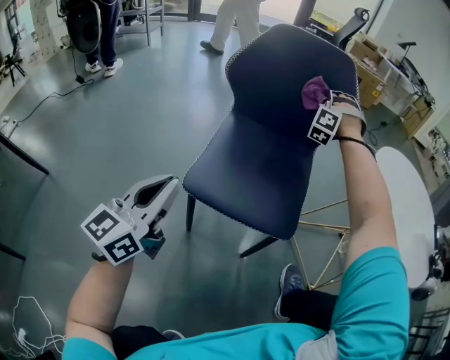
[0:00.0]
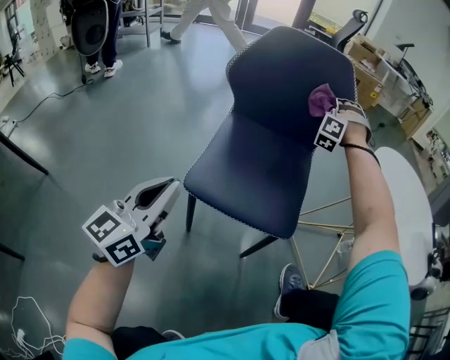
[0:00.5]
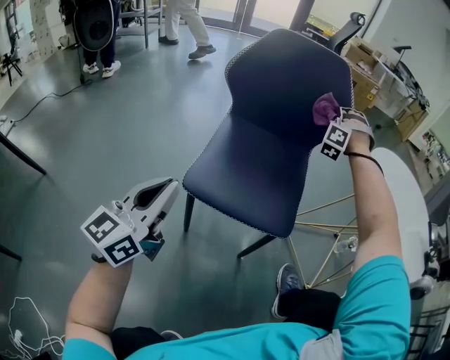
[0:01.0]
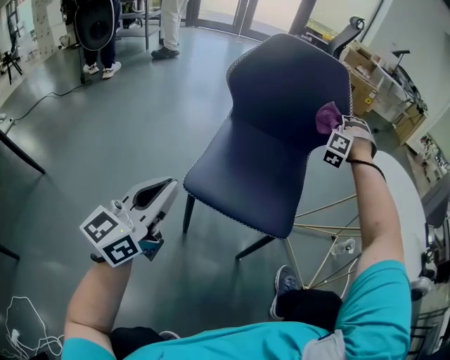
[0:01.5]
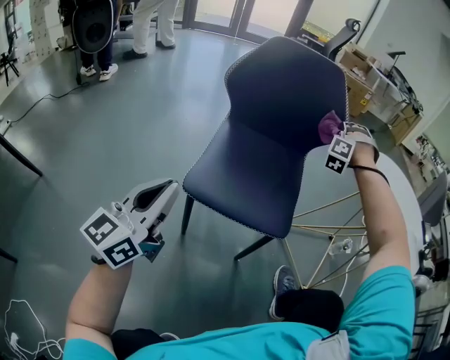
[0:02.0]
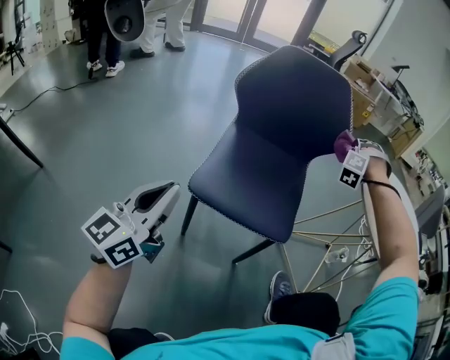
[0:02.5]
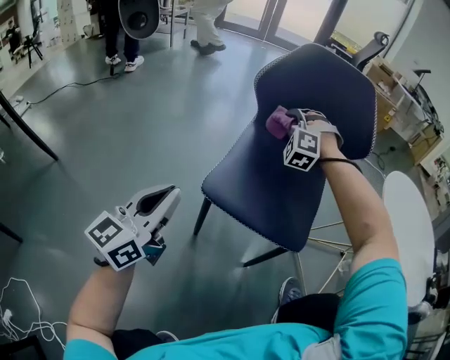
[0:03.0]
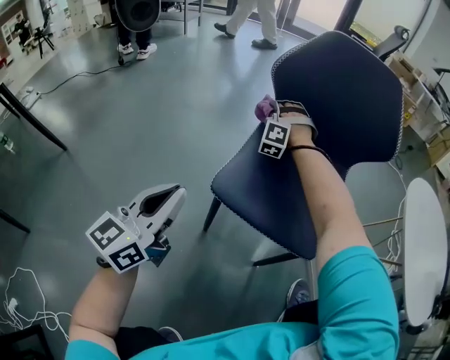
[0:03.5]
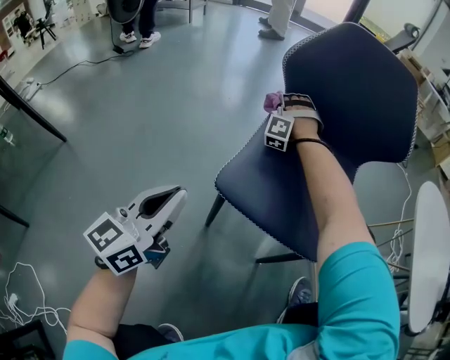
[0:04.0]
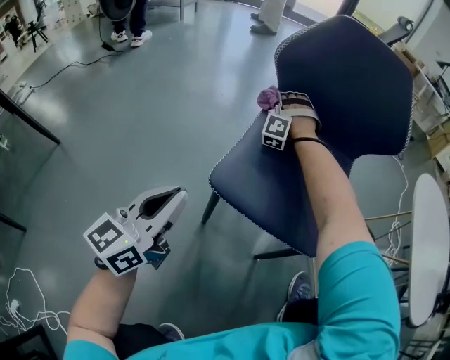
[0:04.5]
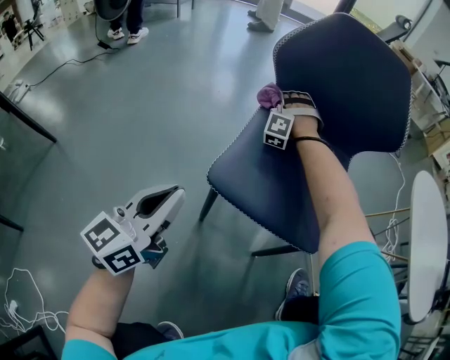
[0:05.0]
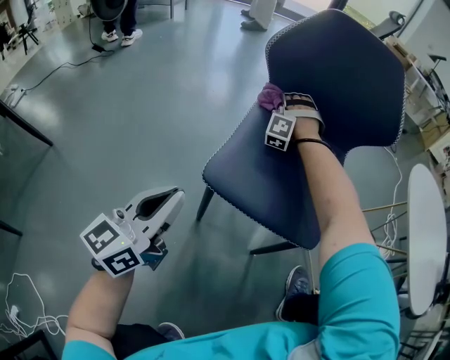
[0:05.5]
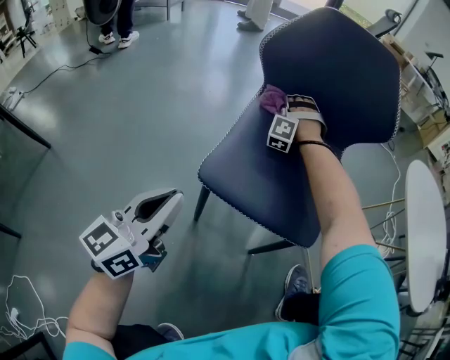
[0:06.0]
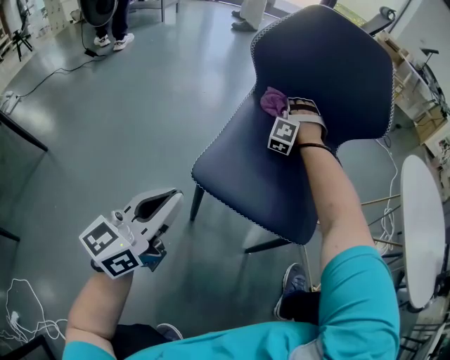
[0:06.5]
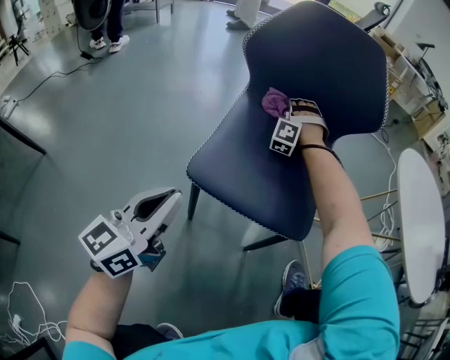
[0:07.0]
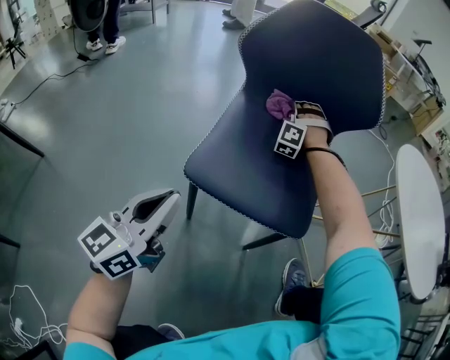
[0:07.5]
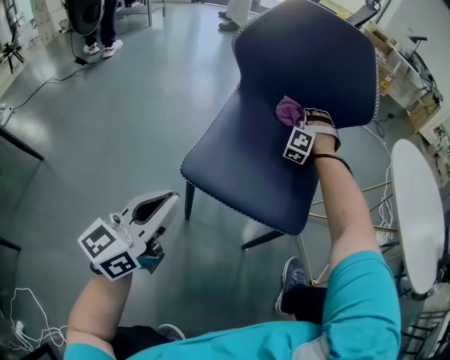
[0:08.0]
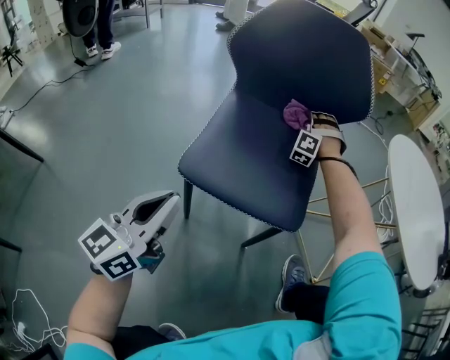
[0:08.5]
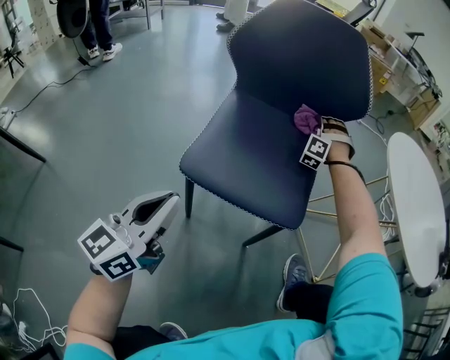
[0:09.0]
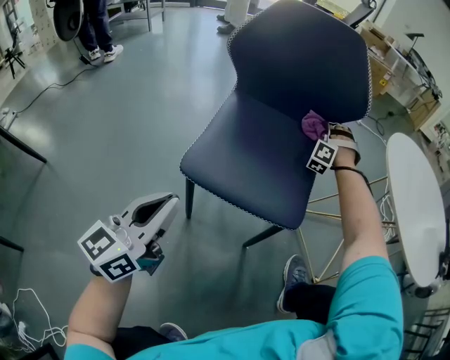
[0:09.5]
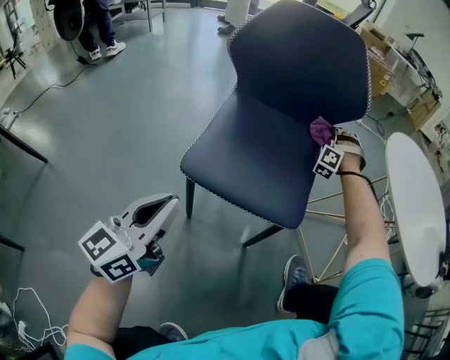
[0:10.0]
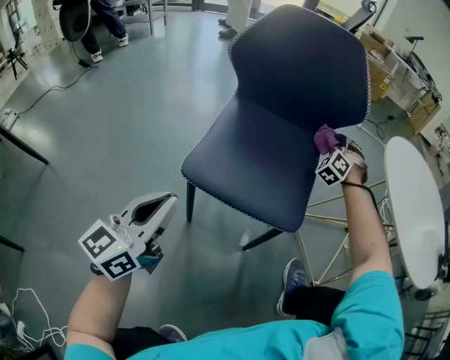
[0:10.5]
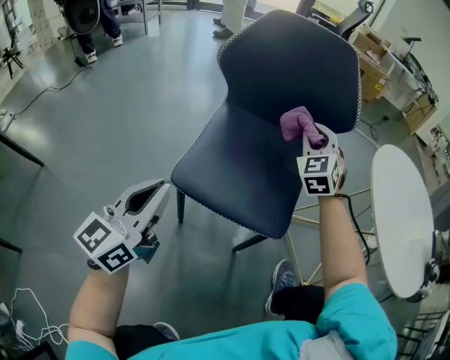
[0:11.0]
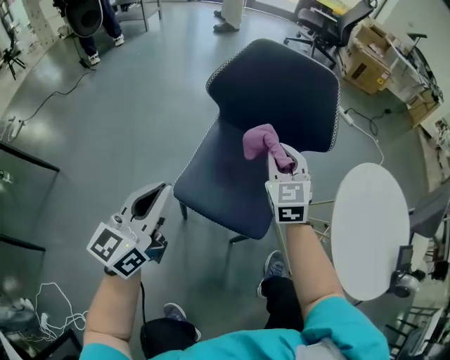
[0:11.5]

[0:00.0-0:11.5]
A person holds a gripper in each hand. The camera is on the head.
0:02.0 to 0:04.0: The left gripper shifts about 10 cm downward.
0:09.5 to 0:11.5: The left gripper goes some 20 cm upward.

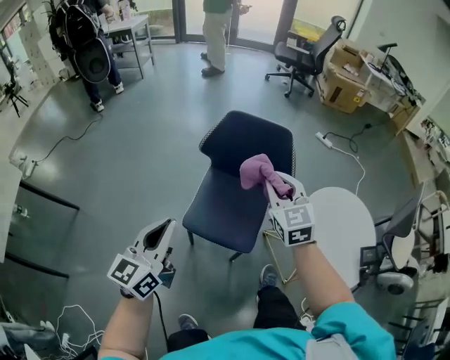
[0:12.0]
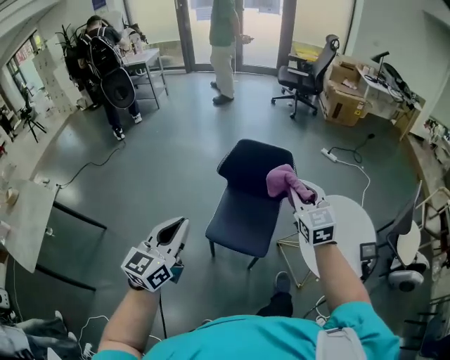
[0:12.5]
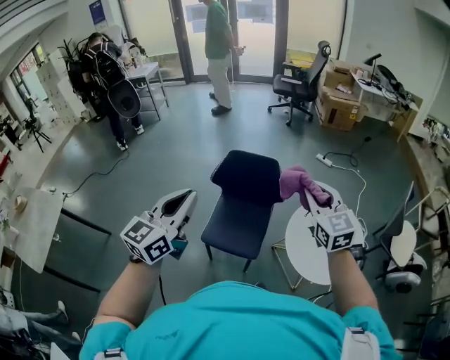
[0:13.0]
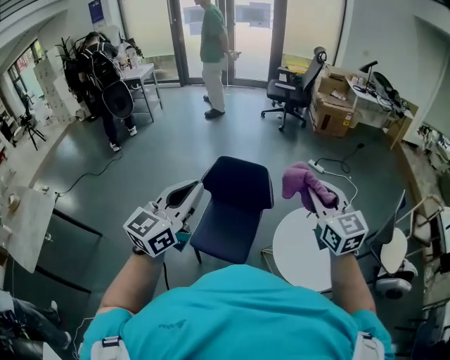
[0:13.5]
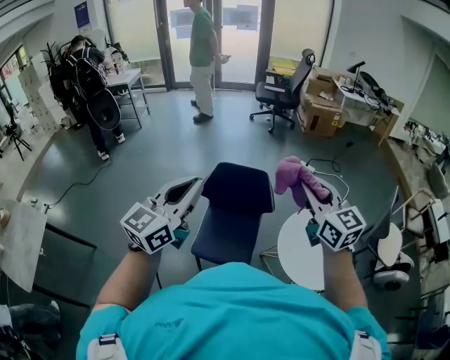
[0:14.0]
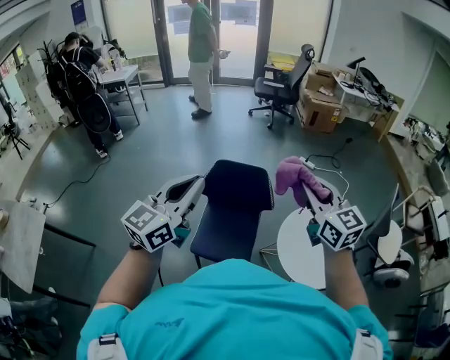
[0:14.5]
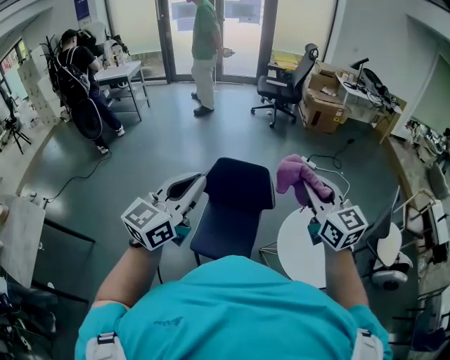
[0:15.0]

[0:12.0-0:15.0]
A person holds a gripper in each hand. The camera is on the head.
0:12.0 to 0:13.5: The left gripper is displaced upward by approximately 35 cm.
0:13.5 to 0:15.0: The left gripper moves approximately 5 cm.

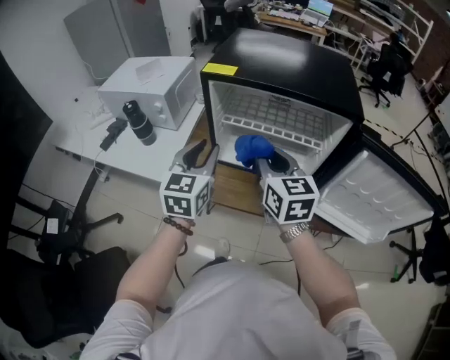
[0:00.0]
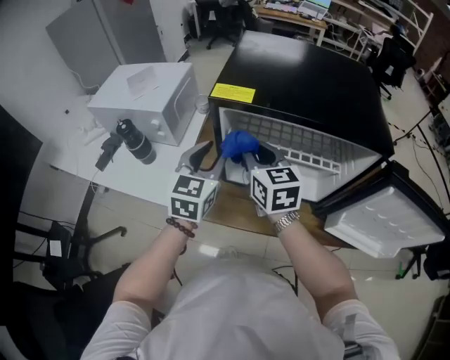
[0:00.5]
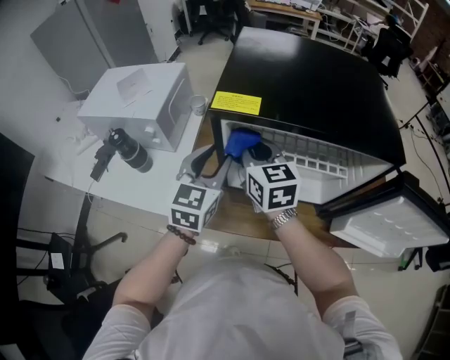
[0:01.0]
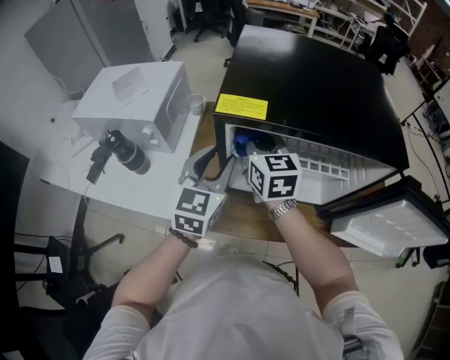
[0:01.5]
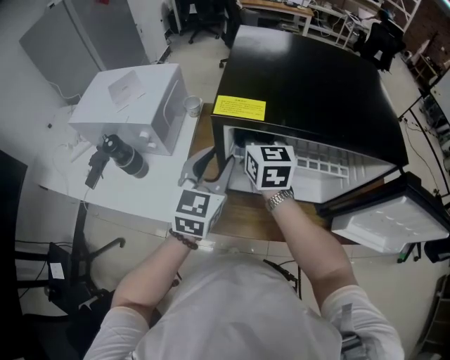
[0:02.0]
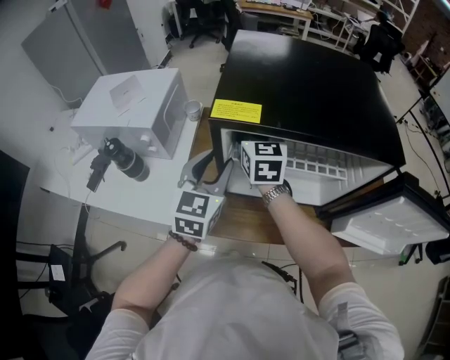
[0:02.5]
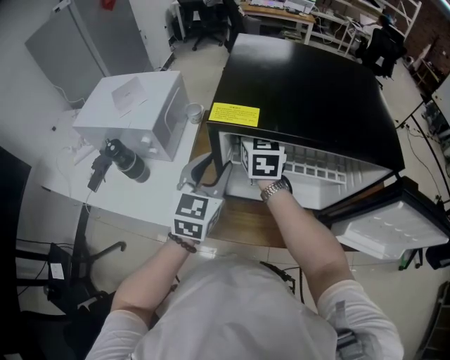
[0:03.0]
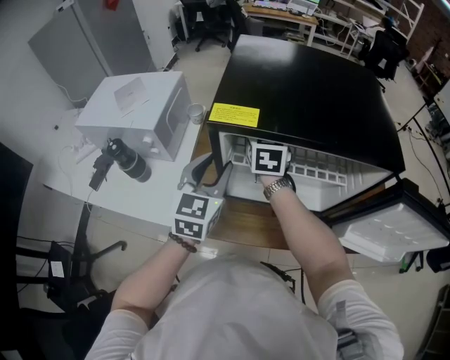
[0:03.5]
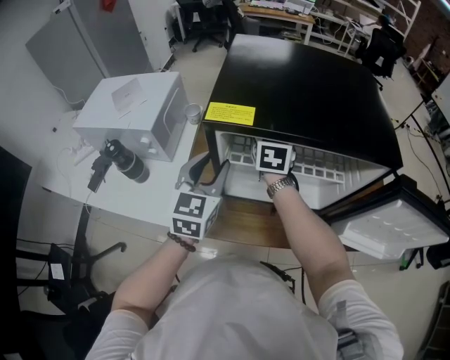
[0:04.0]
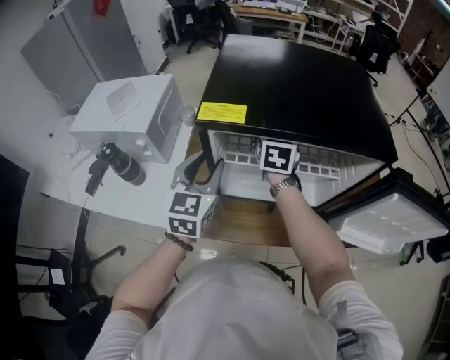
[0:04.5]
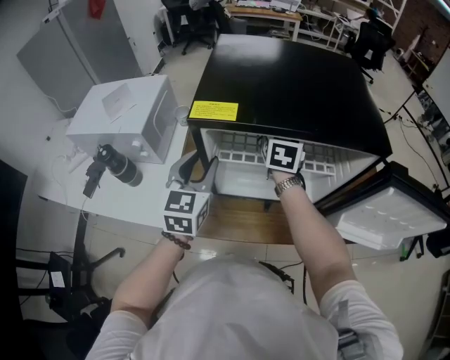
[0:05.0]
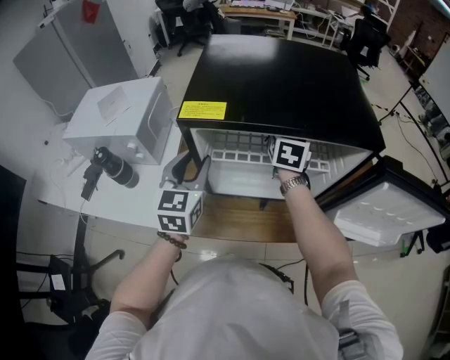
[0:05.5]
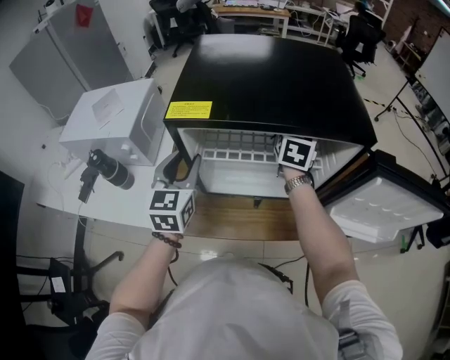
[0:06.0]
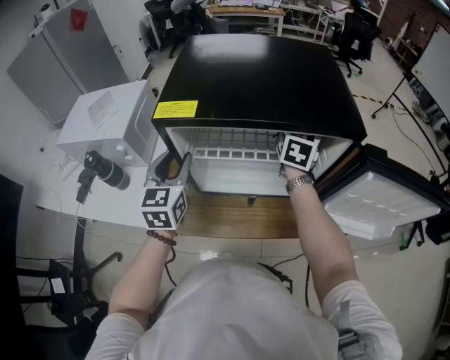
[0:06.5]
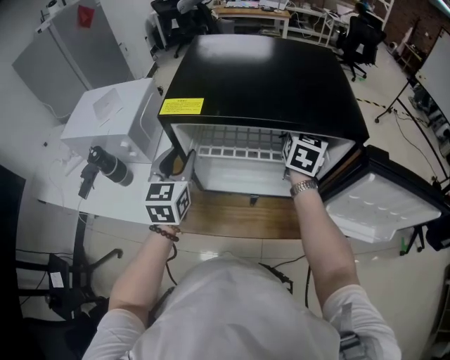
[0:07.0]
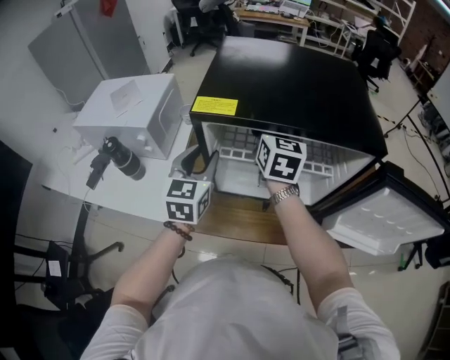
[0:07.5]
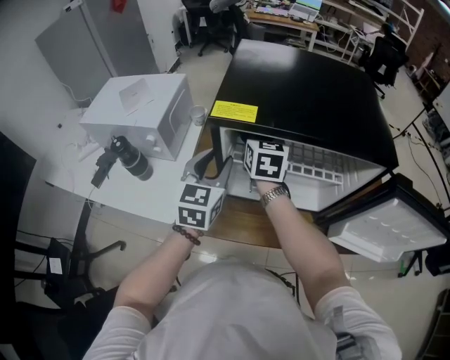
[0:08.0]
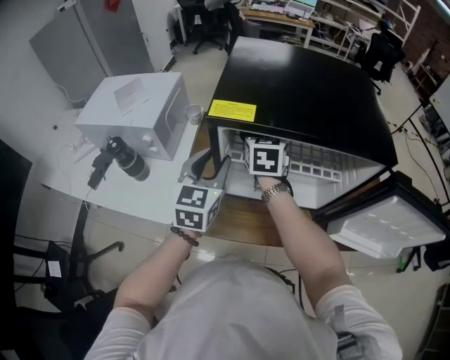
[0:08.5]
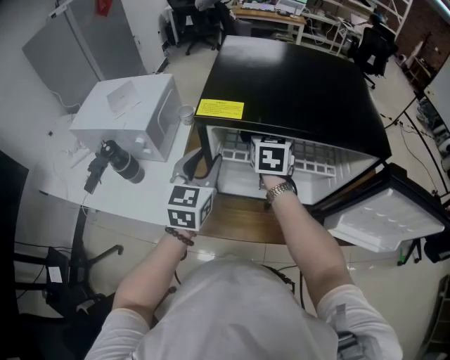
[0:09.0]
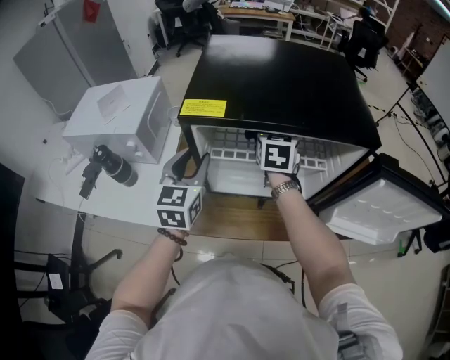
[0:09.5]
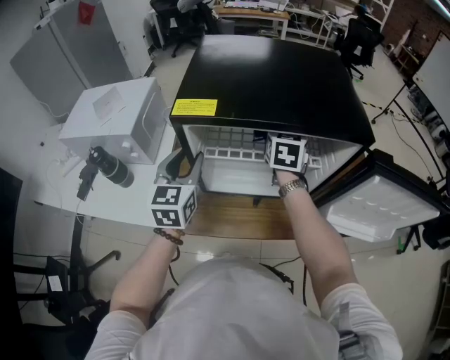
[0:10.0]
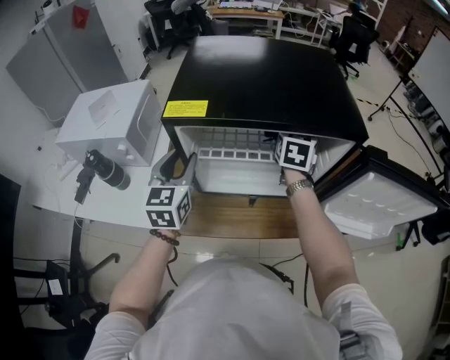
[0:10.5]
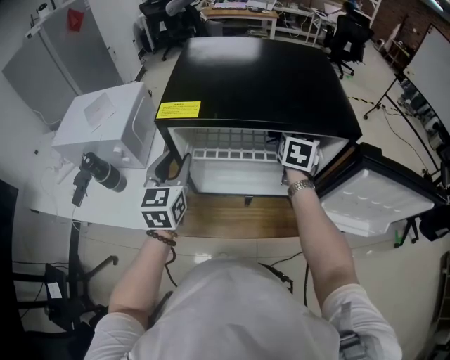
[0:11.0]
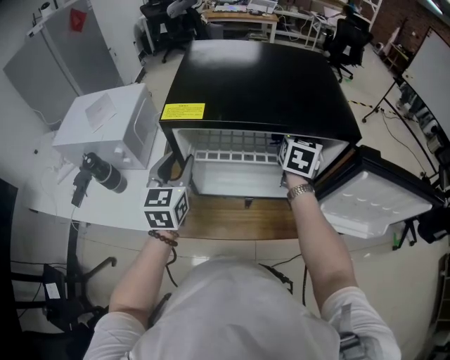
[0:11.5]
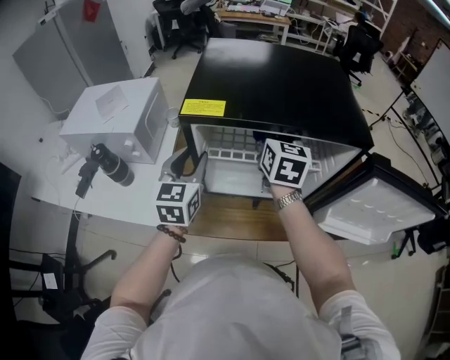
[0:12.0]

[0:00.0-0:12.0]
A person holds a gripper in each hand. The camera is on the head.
0:00.0 to 0:02.0: The left gripper travels forward by roughly 15 cm; the right gripper moves forward, roughly 25 cm.
0:02.0 to 0:04.0: The right gripper travels to the right and forward by roughly 10 cm.
0:04.0 to 0:06.0: The right gripper is displaced to the right by approximately 15 cm.
0:06.0 to 0:08.0: The right gripper goes roughly 20 cm to the left.
0:08.0 to 0:10.0: The right gripper goes some 15 cm to the right.
0:10.0 to 0:12.0: The right gripper is displaced upward by roughly 5 cm, and moves about 10 cm to the right and comes back.

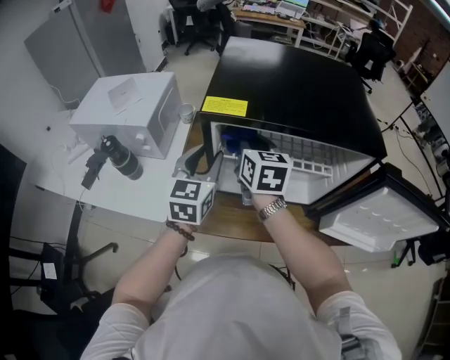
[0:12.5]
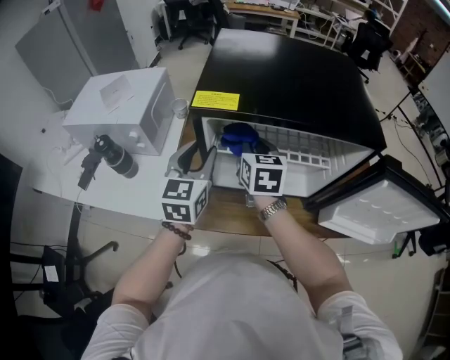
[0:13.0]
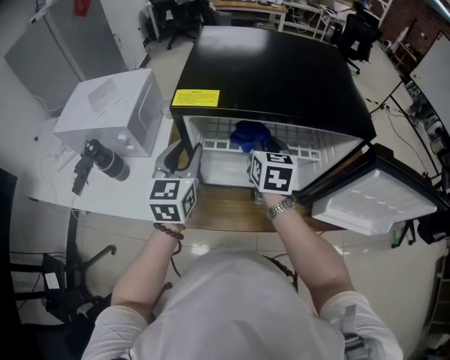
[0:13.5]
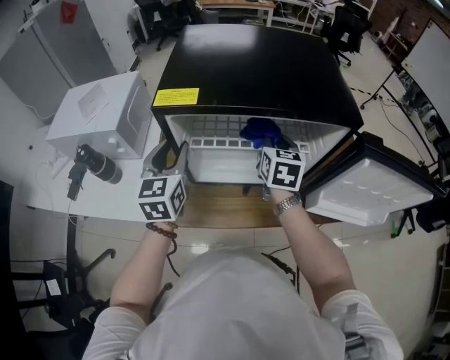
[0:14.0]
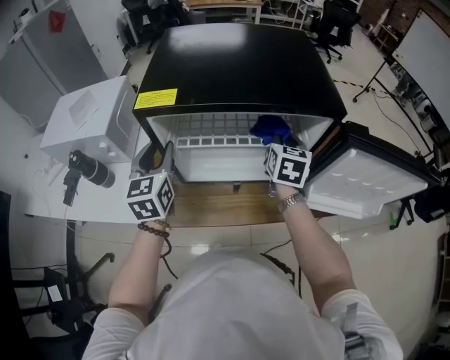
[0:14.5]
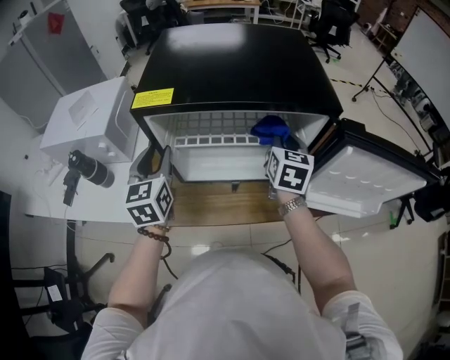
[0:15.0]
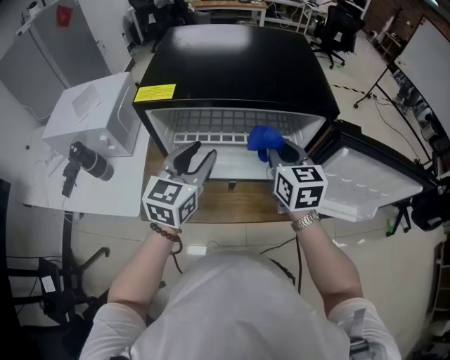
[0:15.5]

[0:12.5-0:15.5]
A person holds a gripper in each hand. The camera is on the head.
0:12.5 to 0:14.0: The right gripper is displaced to the right by some 15 cm.
0:14.0 to 0:15.5: The right gripper travels backward and upward by about 10 cm. Meanwhile the left gripper is displaced to the right by approximately 15 cm, and turns by some 20 degrees.
